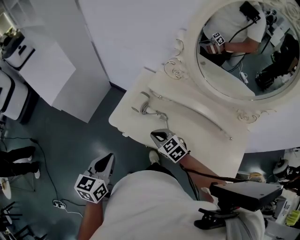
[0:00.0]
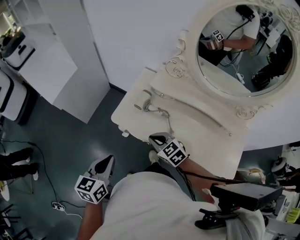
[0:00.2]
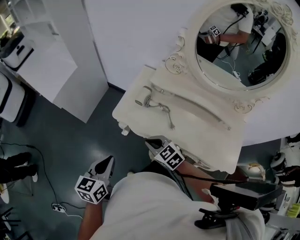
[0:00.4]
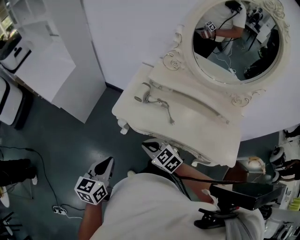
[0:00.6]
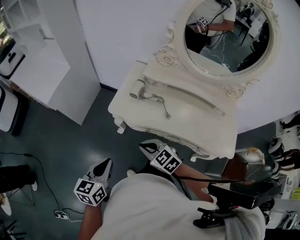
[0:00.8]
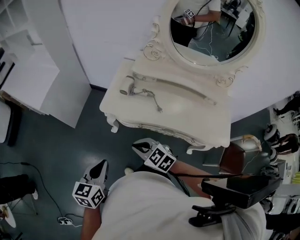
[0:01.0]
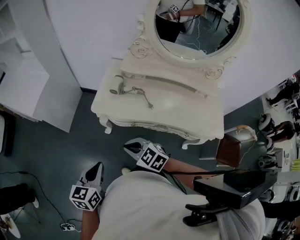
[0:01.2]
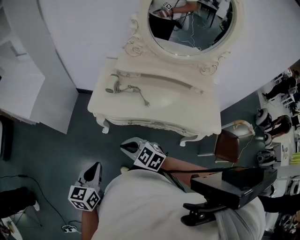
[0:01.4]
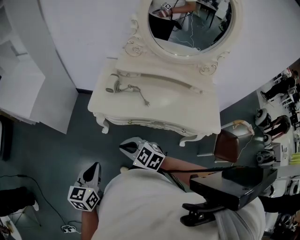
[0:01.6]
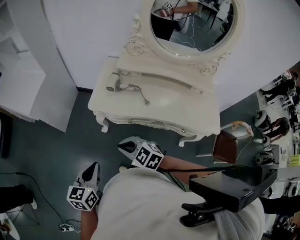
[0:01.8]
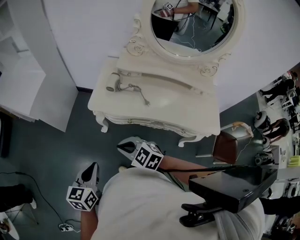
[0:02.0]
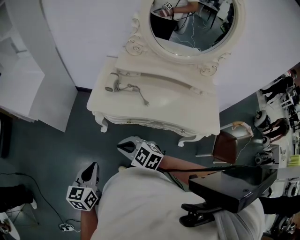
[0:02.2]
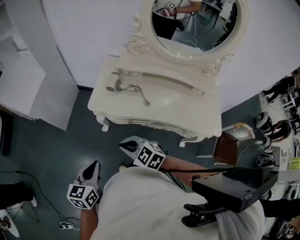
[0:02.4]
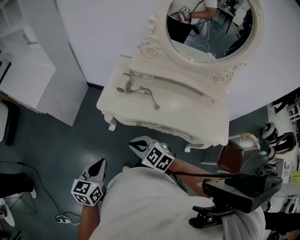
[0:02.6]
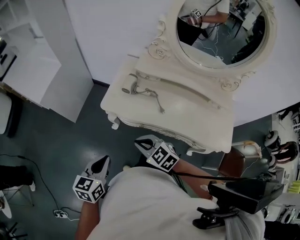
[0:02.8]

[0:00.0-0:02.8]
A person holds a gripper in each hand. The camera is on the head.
0:00.0 to 0:01.4: Both grippers move backward and to the left, some 25 cm.
0:01.4 to 0:02.8: The right gripper ends up roughly 5 cm from where it was. The left gripper moves roughly 5 cm.

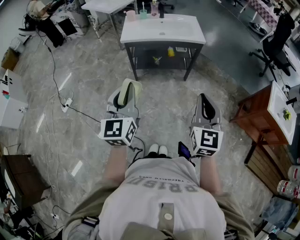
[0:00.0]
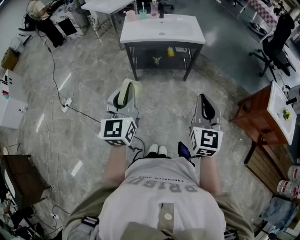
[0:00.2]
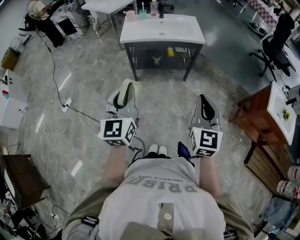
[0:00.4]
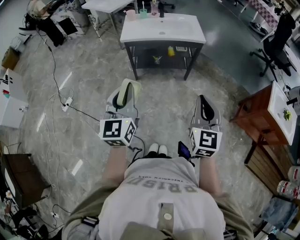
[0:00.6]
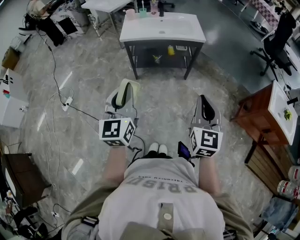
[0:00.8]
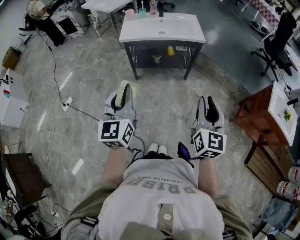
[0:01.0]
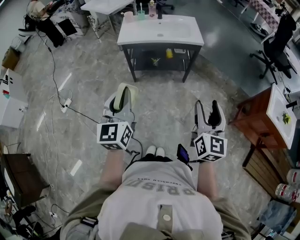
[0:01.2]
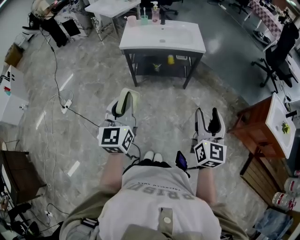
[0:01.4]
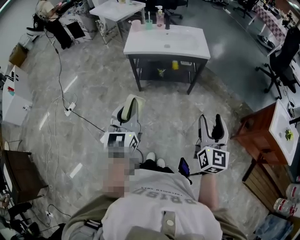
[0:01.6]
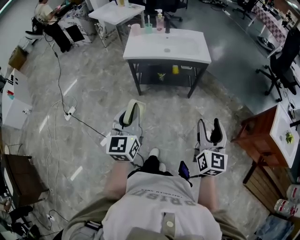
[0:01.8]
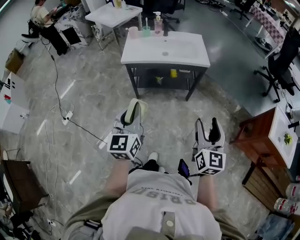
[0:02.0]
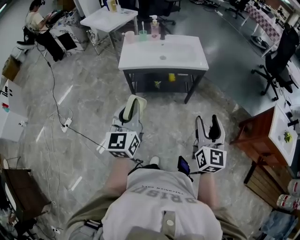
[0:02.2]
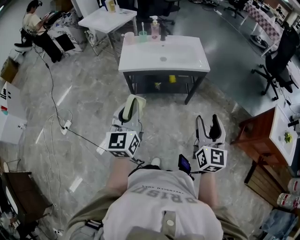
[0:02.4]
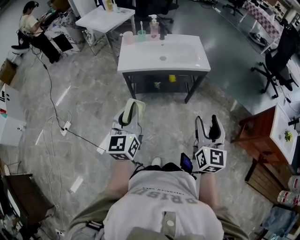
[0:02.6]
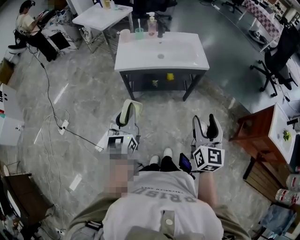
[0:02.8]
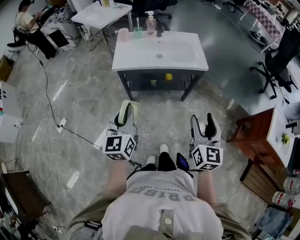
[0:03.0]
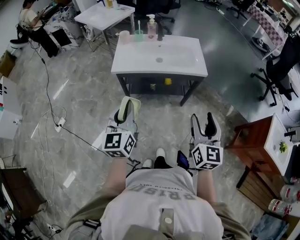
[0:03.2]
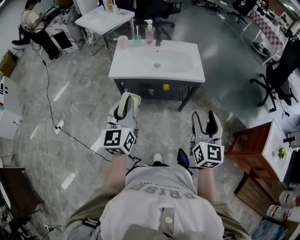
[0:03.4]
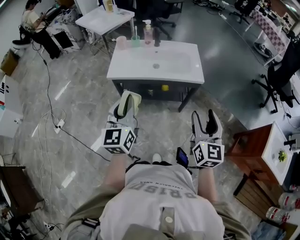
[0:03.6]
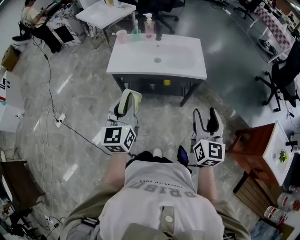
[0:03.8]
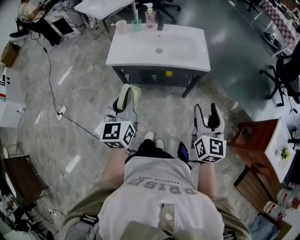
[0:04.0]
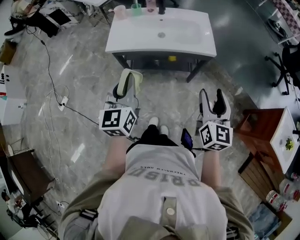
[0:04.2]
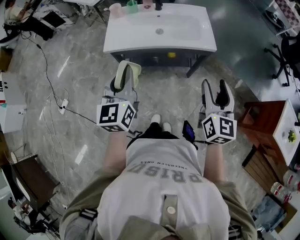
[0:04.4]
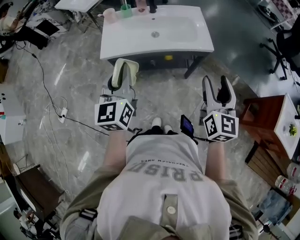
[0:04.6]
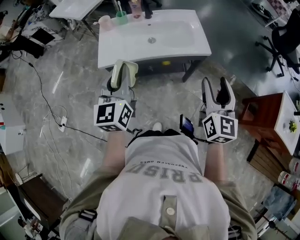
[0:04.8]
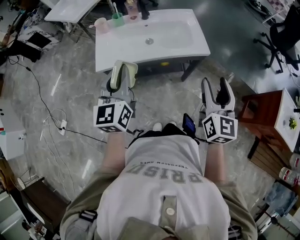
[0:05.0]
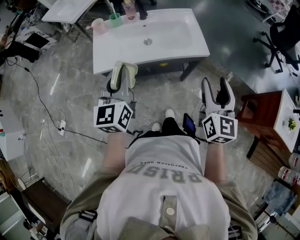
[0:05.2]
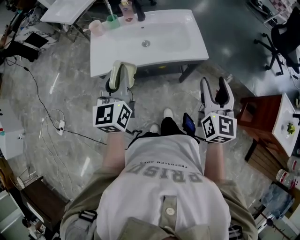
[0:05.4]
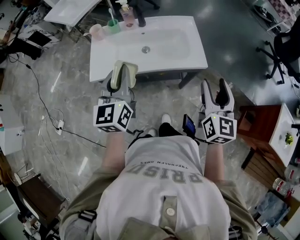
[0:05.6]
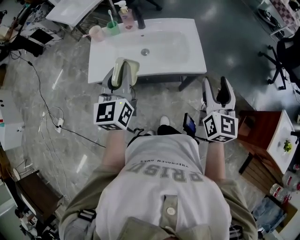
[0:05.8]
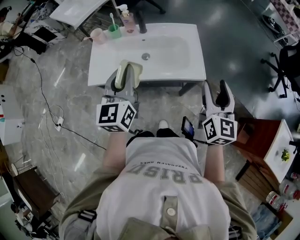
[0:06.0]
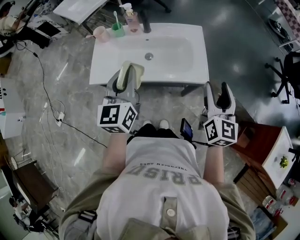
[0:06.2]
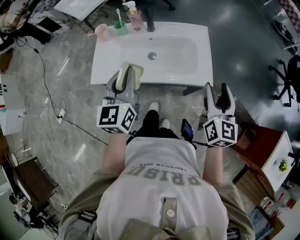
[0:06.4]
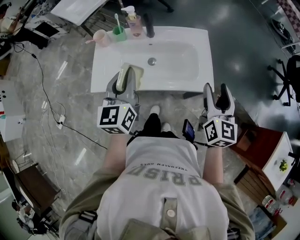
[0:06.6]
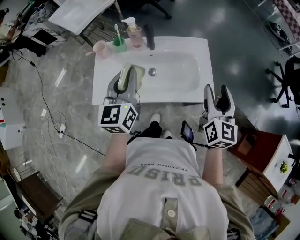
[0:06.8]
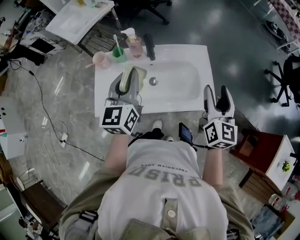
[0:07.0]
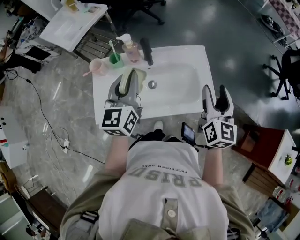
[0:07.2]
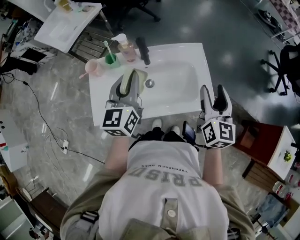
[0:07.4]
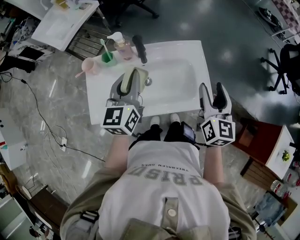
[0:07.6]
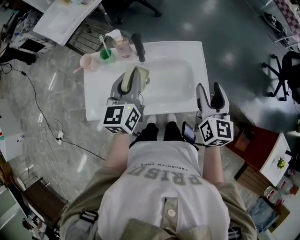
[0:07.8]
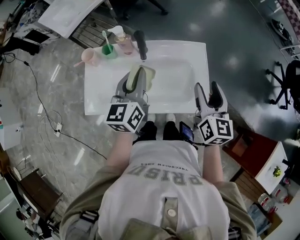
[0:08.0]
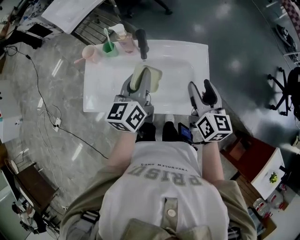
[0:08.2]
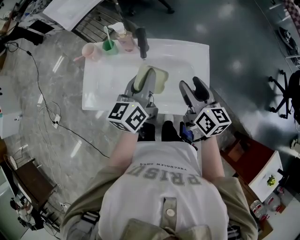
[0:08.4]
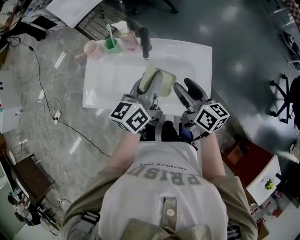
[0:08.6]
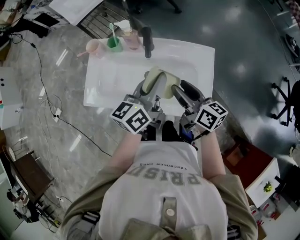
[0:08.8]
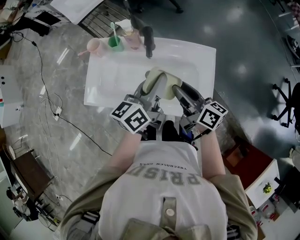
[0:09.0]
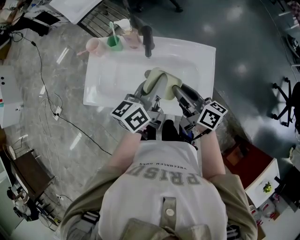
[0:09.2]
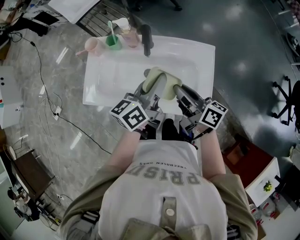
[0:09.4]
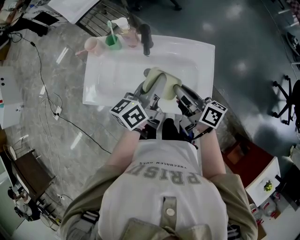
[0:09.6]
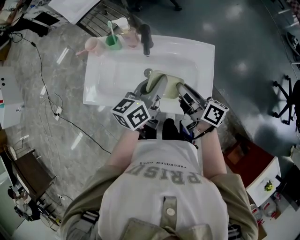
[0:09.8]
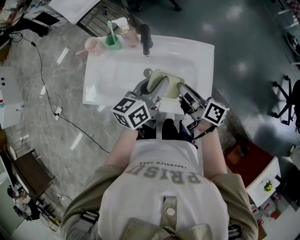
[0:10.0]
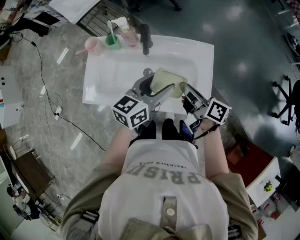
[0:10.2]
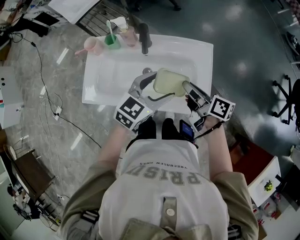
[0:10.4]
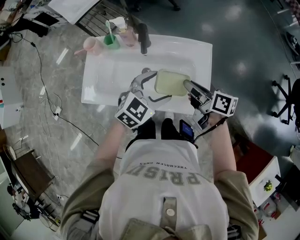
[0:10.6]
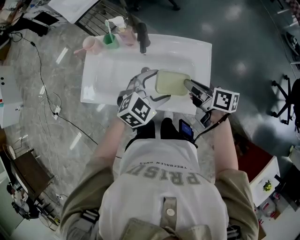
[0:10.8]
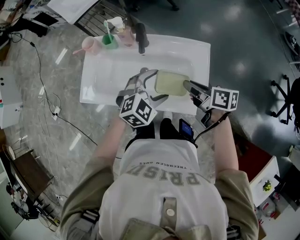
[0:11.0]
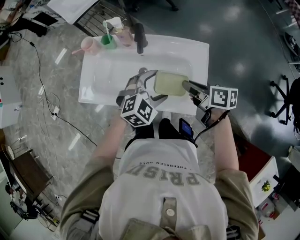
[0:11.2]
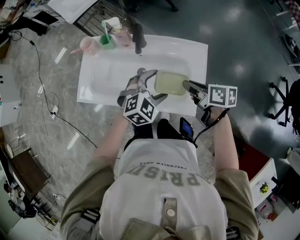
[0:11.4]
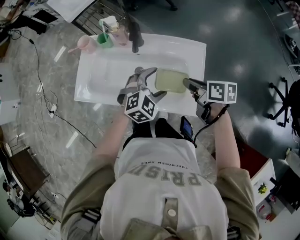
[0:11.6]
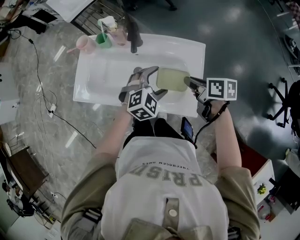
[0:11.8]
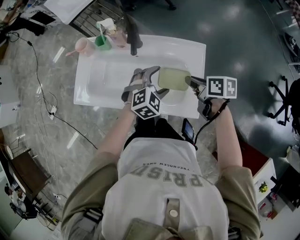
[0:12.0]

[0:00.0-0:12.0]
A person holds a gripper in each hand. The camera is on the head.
0:00.0 to 0:01.6: The left gripper changes place by about 5 cm. The right gripper heads to the right, covering roughly 5 cm, and opens its fingers.
0:01.6 to 0:03.0: Both grippers move forward, roughly 15 cm.
0:03.0 to 0:04.4: Both grippers travel together forward, approximately 15 cm.
0:04.4 to 0:06.0: Both grippers move forward, approximately 20 cm.
0:06.0 to 0:07.6: The grippers both shift forward by some 20 cm.
0:07.6 to 0:09.0: The left gripper is displaced to the right by about 10 cm, and rotates roughly 30 degrees. The right gripper moves to the left and downward, some 15 cm, and changes its angle by about 60 degrees.
0:09.0 to 0:10.4: The right gripper closes; the left gripper ends up approximately 5 cm from where it was, changes its angle by some 50 degrees, and opens.
0:10.4 to 0:12.0: The right gripper is displaced to the right and downward by approximately 10 cm, and rotates some 30 degrees. Meanwhile the left gripper is displaced downward by some 10 cm, and rotates about 30 degrees.

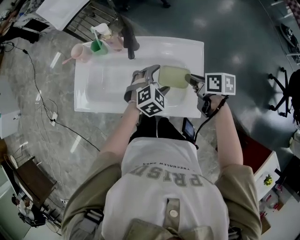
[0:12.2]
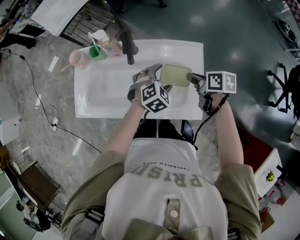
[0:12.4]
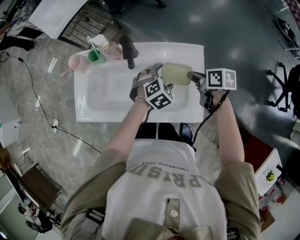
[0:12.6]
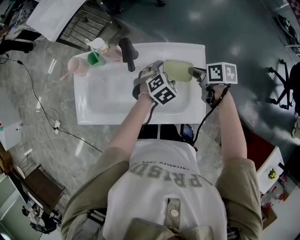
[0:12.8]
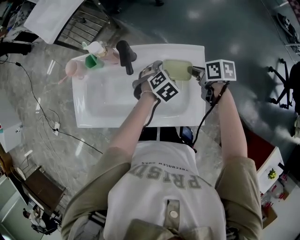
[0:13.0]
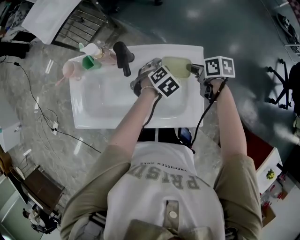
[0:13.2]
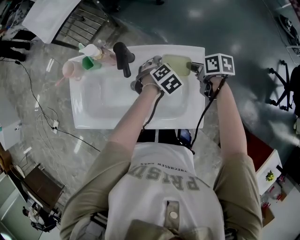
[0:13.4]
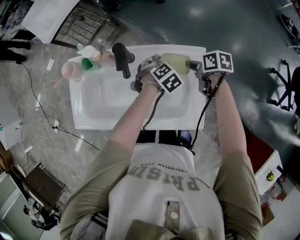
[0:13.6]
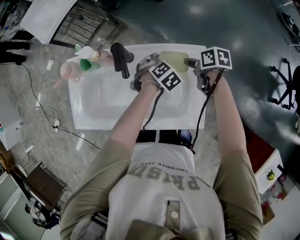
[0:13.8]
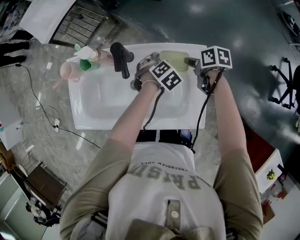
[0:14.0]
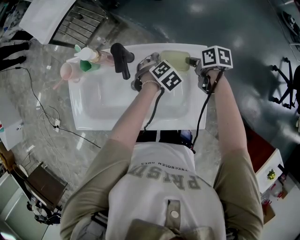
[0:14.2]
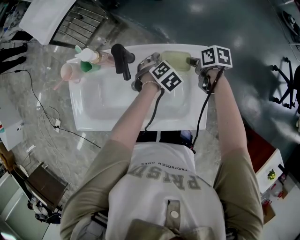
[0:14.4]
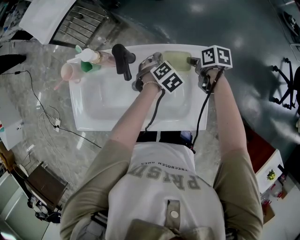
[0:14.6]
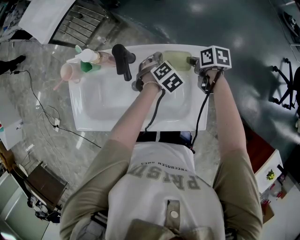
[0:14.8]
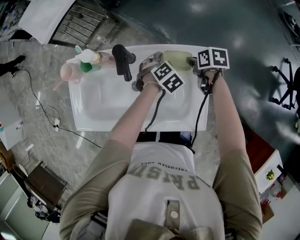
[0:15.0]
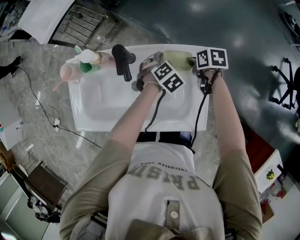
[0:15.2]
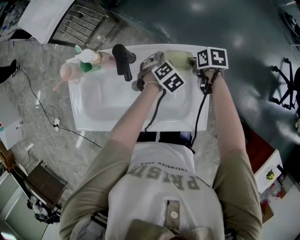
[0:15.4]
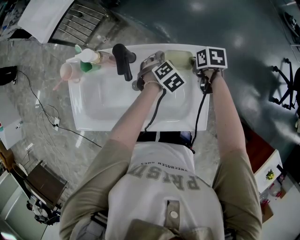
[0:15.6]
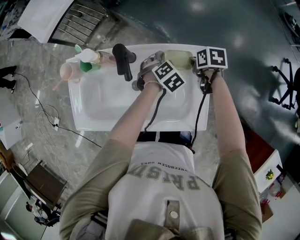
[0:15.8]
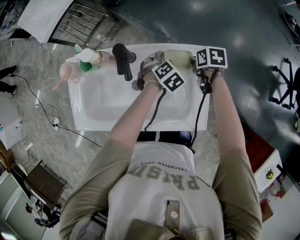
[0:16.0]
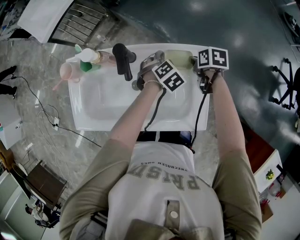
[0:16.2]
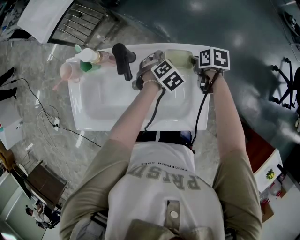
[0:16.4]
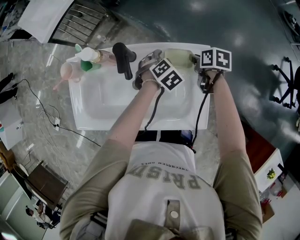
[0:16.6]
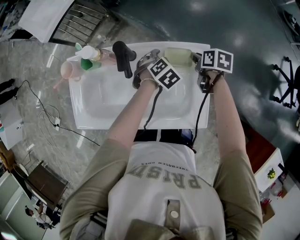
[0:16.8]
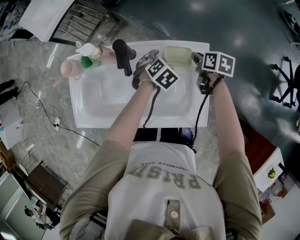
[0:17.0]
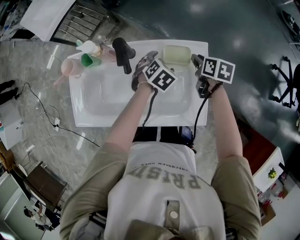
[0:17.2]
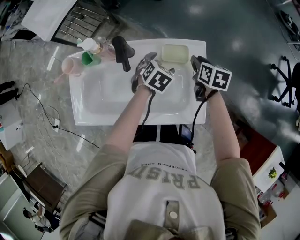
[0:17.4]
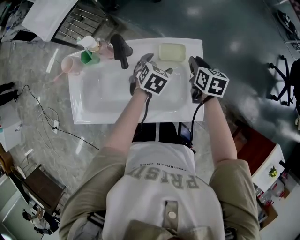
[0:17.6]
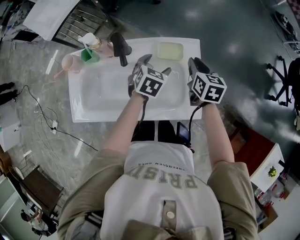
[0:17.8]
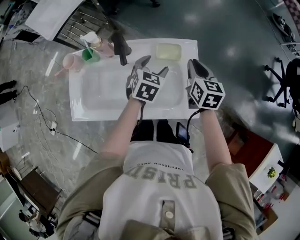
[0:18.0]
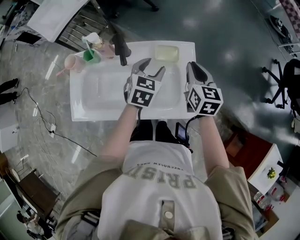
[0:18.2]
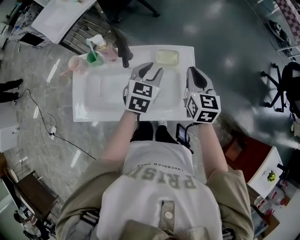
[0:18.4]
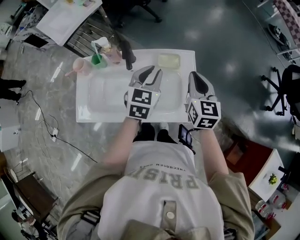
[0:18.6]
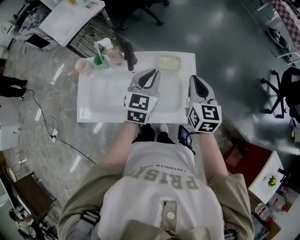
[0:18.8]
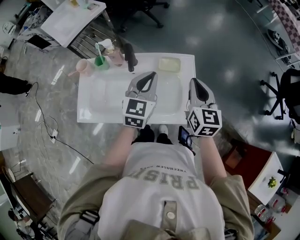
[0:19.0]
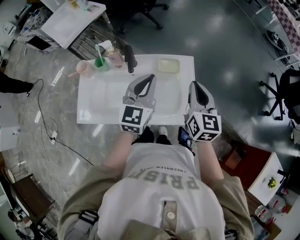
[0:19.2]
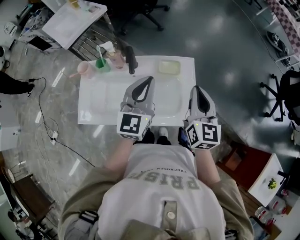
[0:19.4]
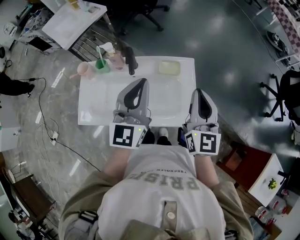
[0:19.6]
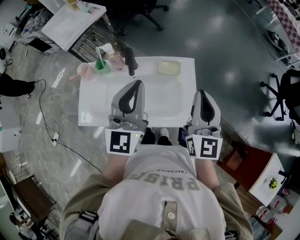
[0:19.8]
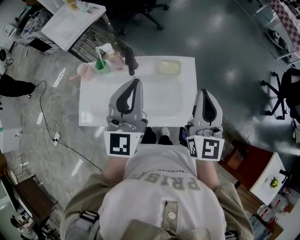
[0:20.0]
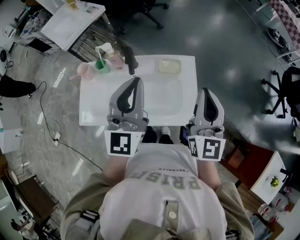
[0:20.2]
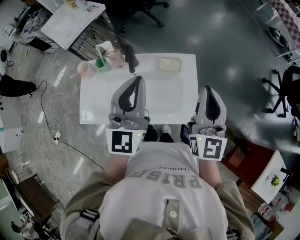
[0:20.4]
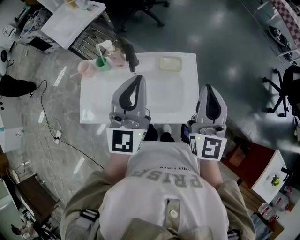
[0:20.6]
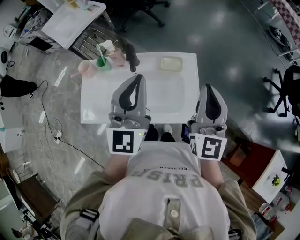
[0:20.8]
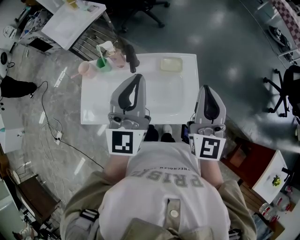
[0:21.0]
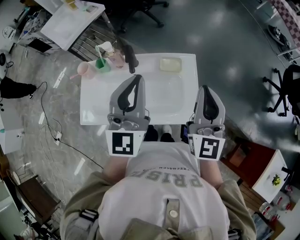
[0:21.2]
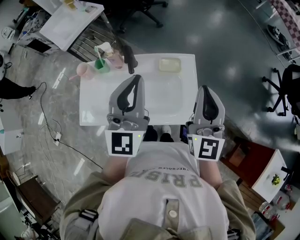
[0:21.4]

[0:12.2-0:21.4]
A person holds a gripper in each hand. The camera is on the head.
0:12.2 to 0:13.8: The two grippers go approximately 15 cm forward and downward. The left gripper swivels roughly 20 degrees.
0:13.8 to 0:16.8: The grippers stay close to where they were, moving slightly.
0:16.8 to 0:18.4: The two grippers go approximately 20 cm upward and backward. The left gripper tilts its fingers about 40 degrees upward, and closes its fingers, while the right gripper tips its fingers upward by about 40 degrees.
0:18.4 to 0:19.8: Both grippers move upward and backward, some 20 cm. The right gripper swivels approximately 30 degrees. The left gripper angles its fingers upward, by about 40 degrees.
0:19.8 to 0:21.4: The grippers move only a little.
